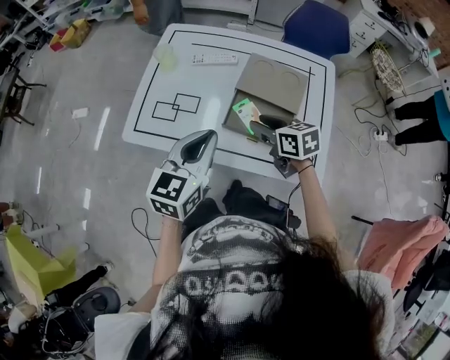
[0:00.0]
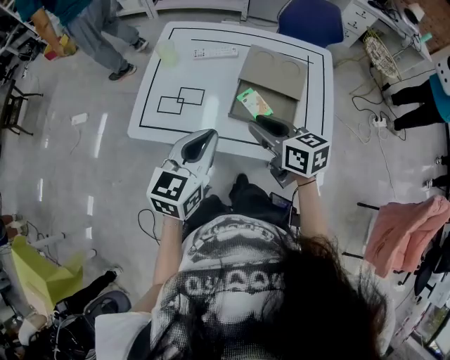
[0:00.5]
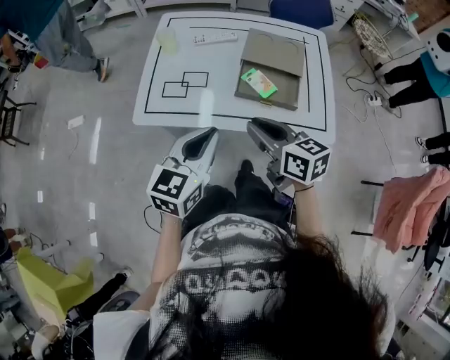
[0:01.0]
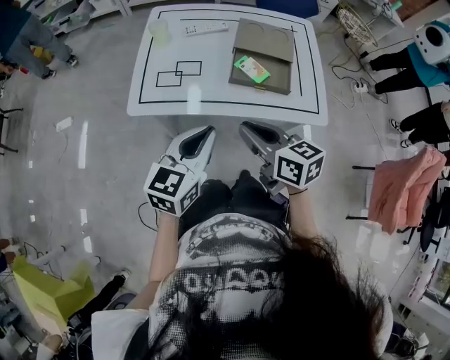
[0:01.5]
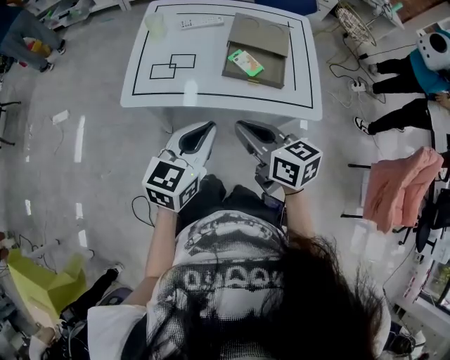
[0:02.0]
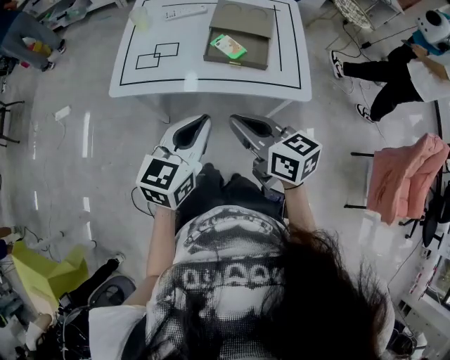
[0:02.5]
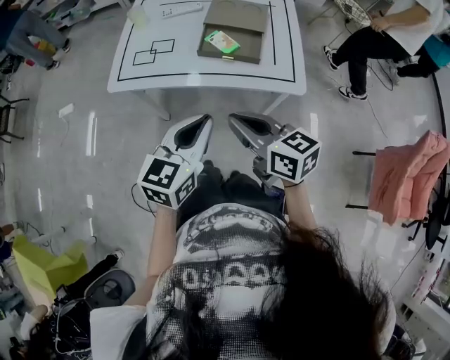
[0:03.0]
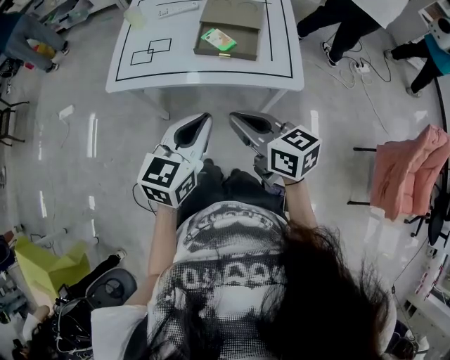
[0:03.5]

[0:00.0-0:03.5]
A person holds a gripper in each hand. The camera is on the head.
0:00.0 to 0:02.0: The grippers both shift backward and to the left by about 25 cm. The right gripper closes.
0:02.0 to 0:03.5: The two grippers go approximately 15 cm to the right and backward.

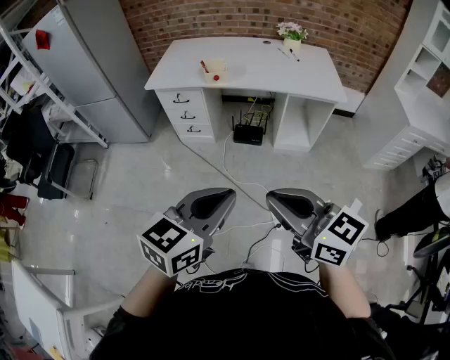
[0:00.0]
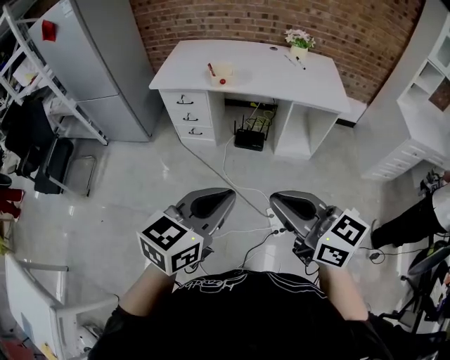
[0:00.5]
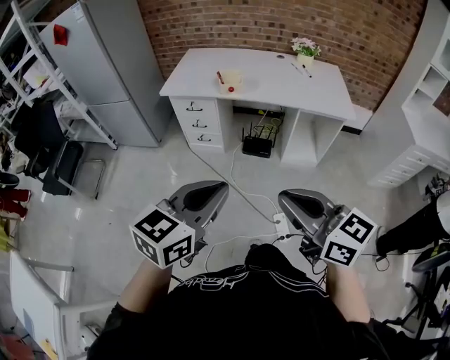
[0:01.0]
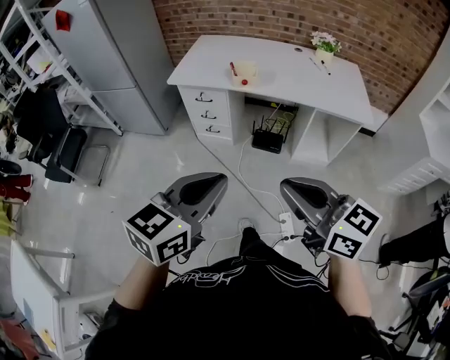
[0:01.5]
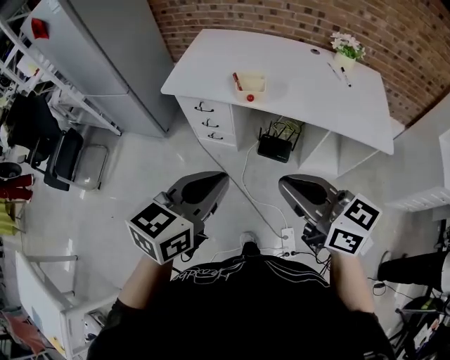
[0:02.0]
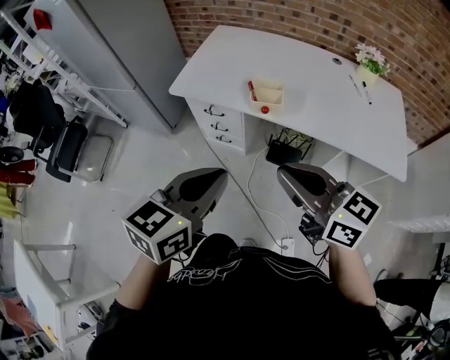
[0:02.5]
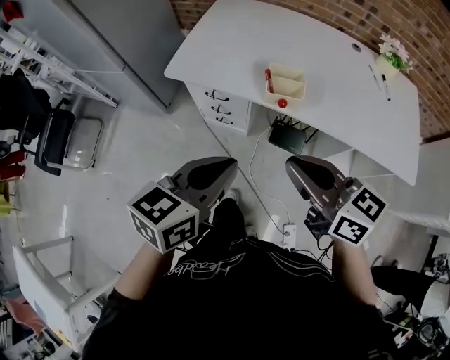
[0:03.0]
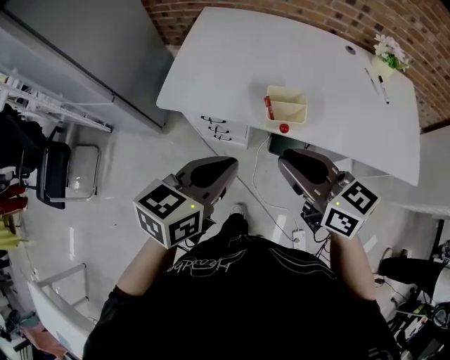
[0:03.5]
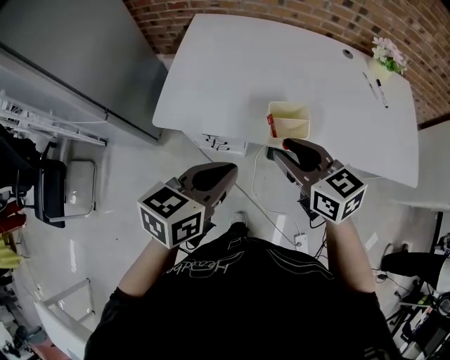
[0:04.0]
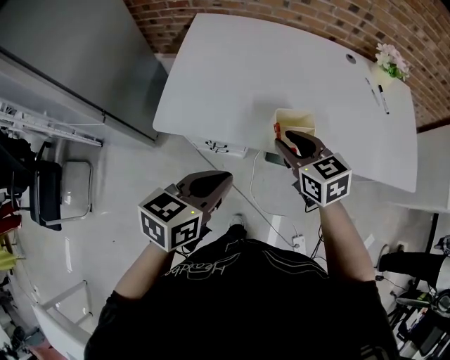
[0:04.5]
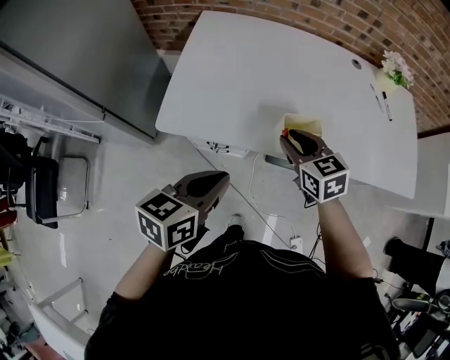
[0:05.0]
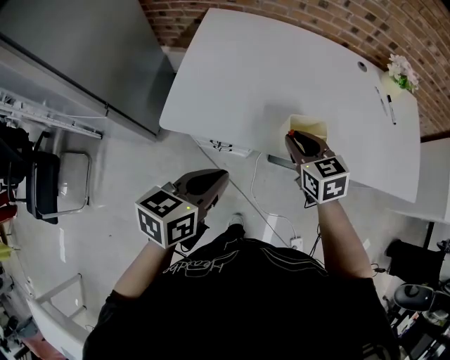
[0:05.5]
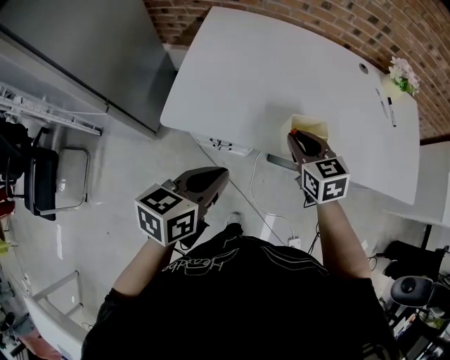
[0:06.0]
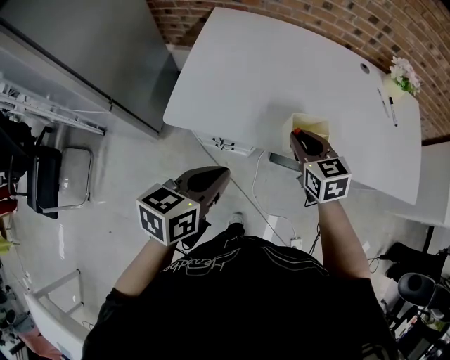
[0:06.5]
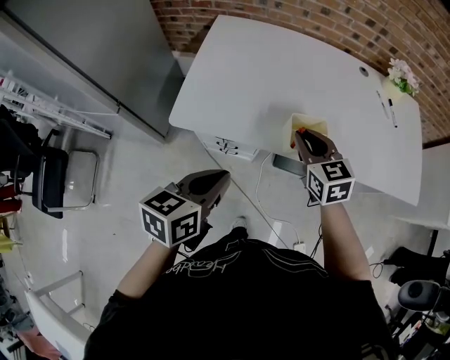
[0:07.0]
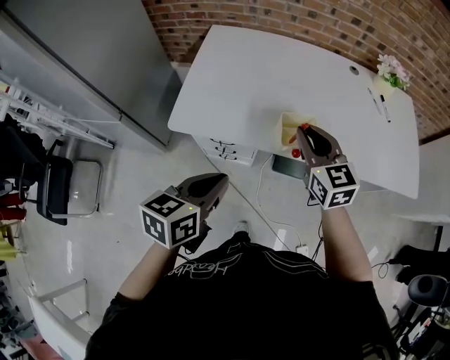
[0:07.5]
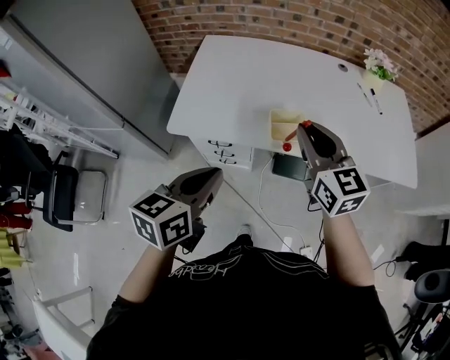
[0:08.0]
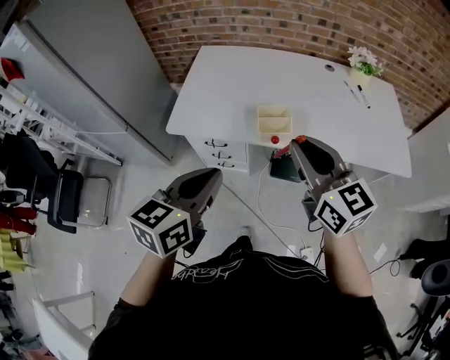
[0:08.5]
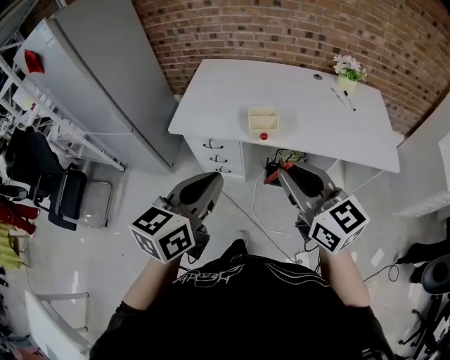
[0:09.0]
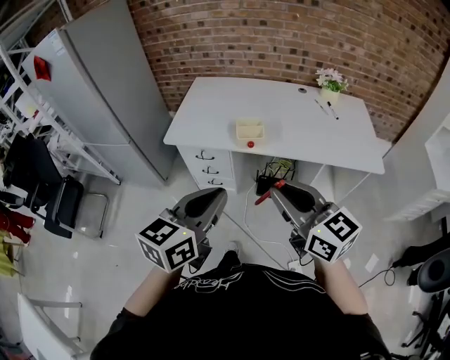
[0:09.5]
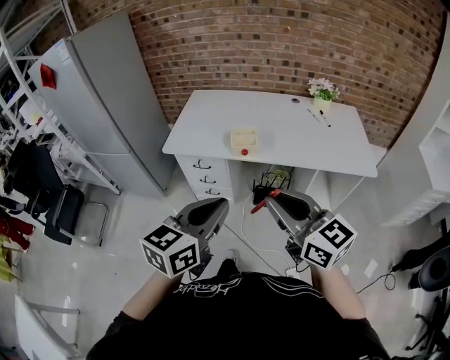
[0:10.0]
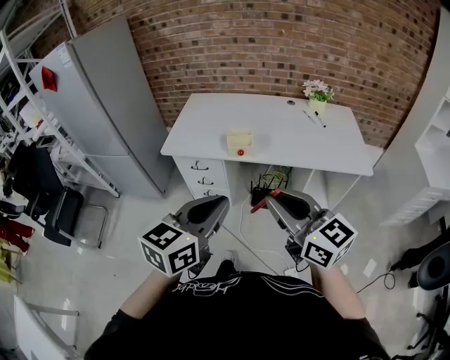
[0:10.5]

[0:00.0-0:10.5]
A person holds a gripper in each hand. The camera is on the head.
0:00.0 to 0:02.0: The two grippers go approximately 30 cm forward.
0:02.0 to 0:04.0: Both grippers move forward, approximately 35 cm. The right gripper opens its fingers.
0:04.0 to 0:06.5: The left gripper goes some 5 cm to the left. The right gripper shifts about 10 cm forward and downward.
0:06.5 to 0:08.5: The right gripper is displaced upward and backward by roughly 30 cm, and swivels approximately 30 degrees. The left gripper moves upward, backward and to the right, about 20 cm.
0:08.5 to 0:10.5: The left gripper travels backward and to the right by about 25 cm, while the right gripper is displaced backward by roughly 25 cm.

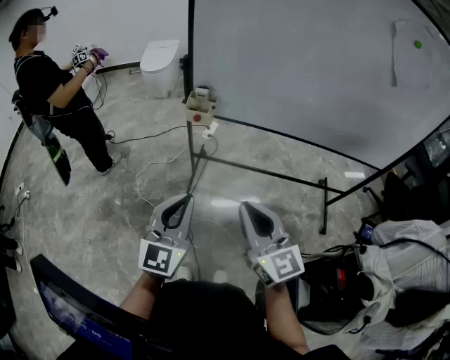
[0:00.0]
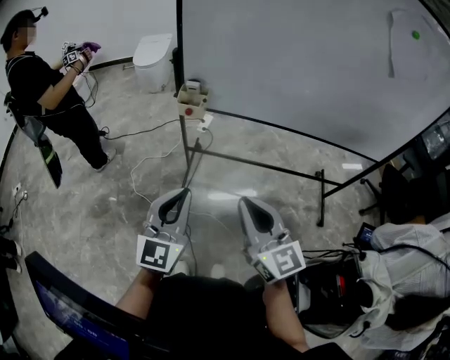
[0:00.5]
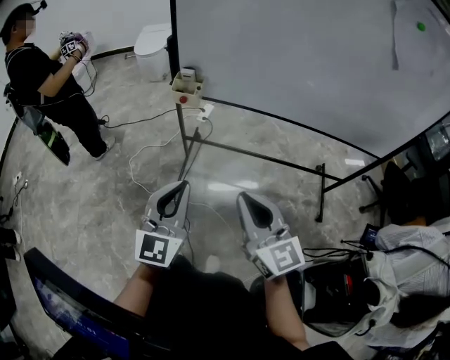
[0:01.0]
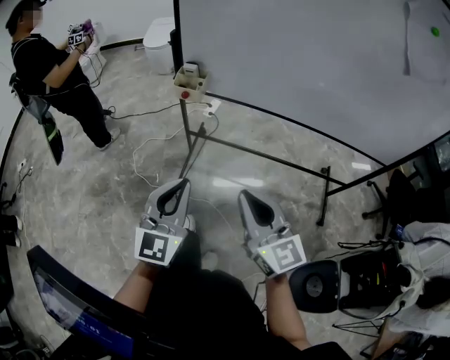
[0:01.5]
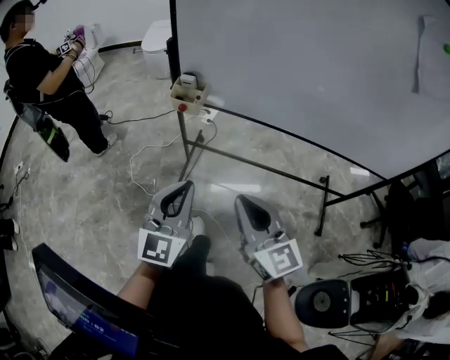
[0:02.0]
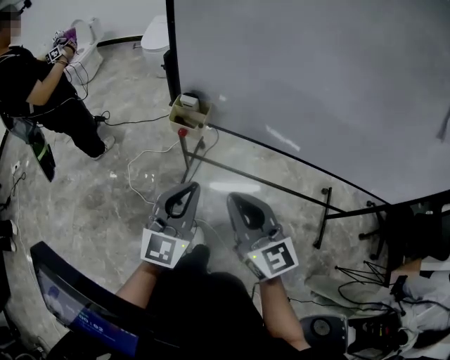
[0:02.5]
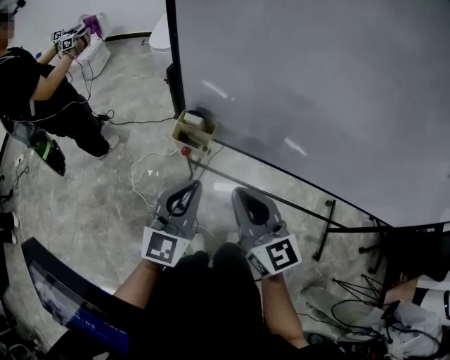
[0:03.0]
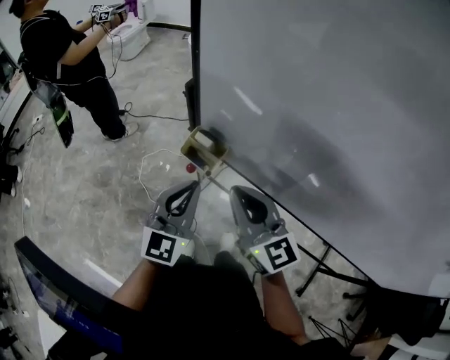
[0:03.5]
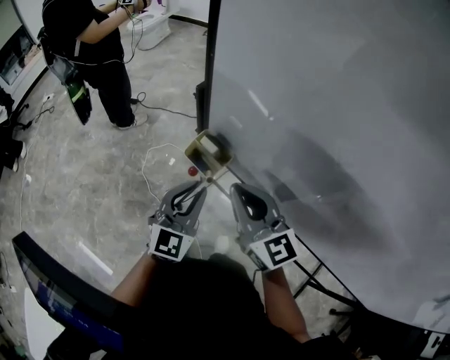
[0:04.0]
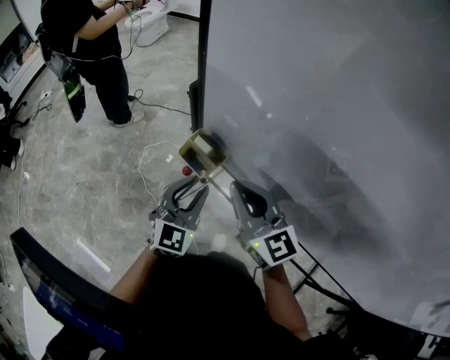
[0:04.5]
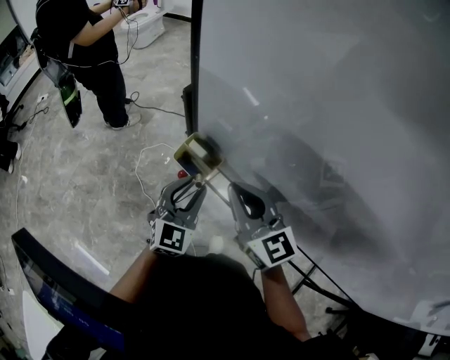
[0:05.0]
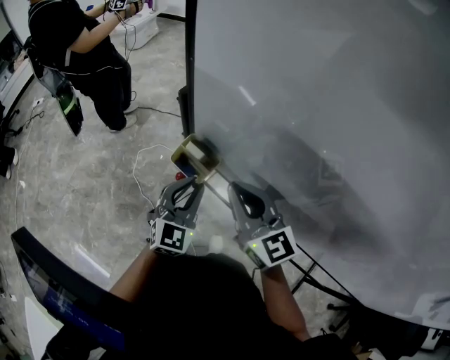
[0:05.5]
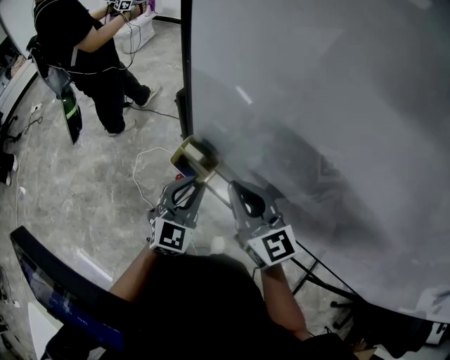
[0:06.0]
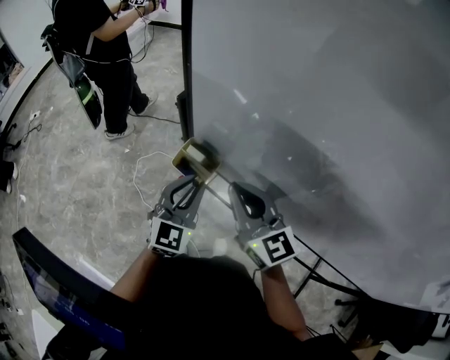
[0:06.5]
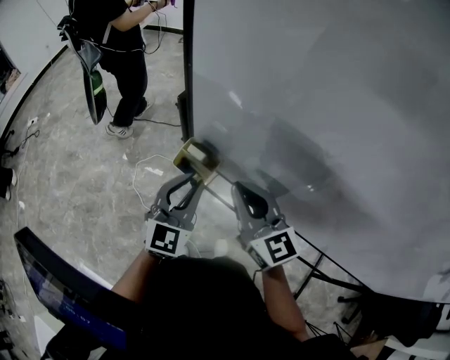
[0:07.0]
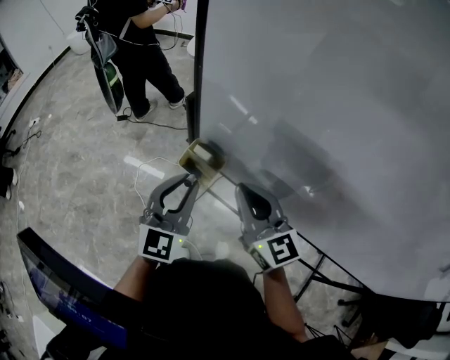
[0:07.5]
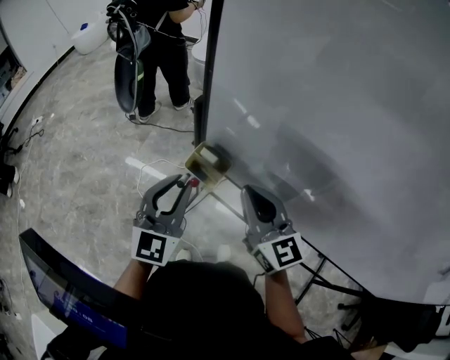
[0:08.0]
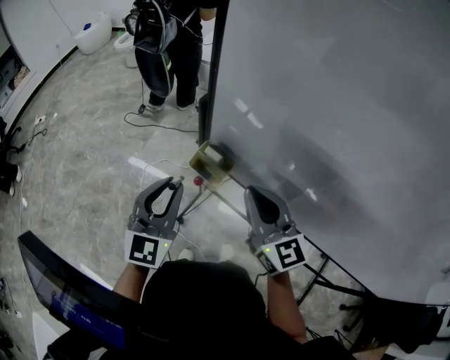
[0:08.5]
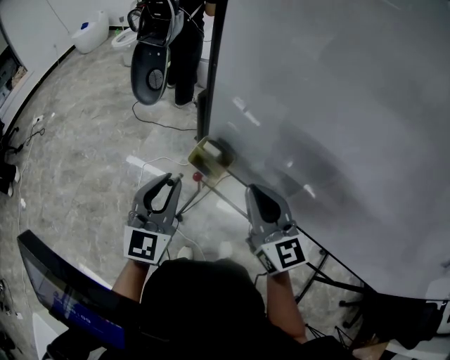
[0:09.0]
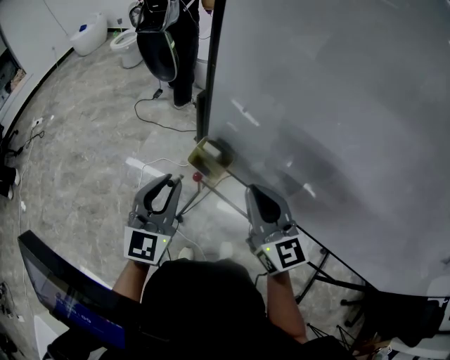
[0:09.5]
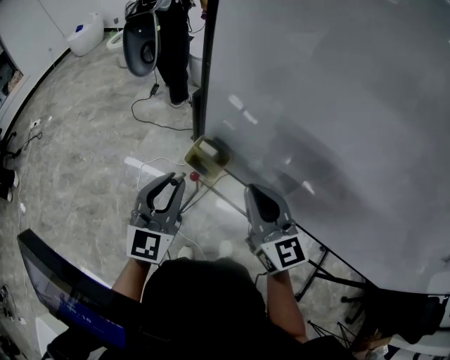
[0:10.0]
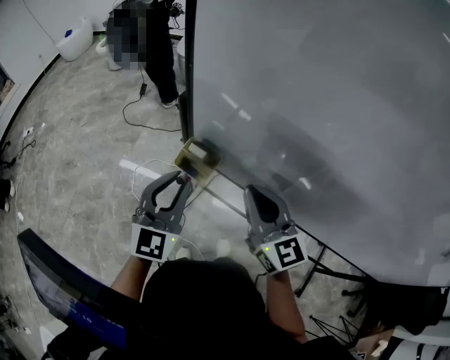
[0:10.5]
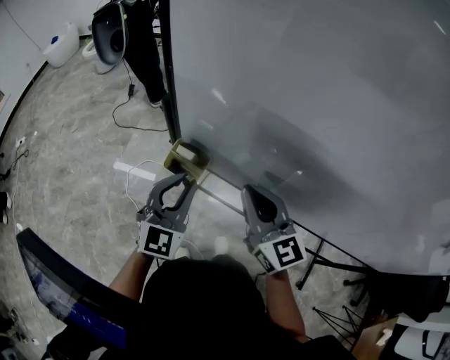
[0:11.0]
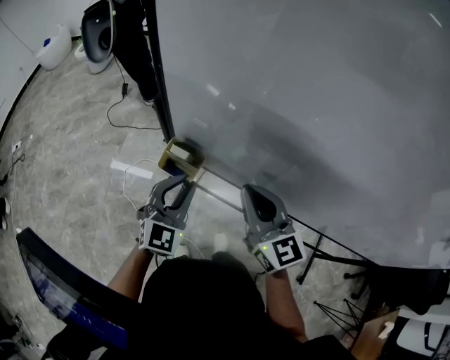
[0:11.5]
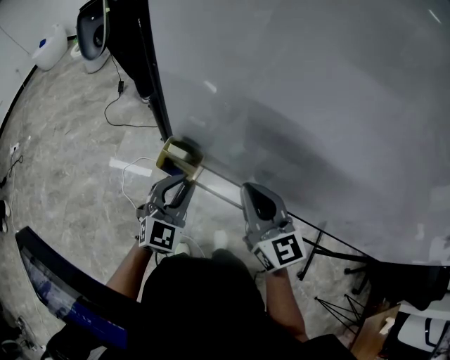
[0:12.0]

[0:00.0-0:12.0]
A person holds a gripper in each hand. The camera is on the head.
0:00.0 to 0:02.0: The two grippers go roughly 10 cm to the right and forward.
0:02.0 to 0:04.0: The left gripper changes place by about 30 cm, and changes its angle by about 20 degrees. Meanwhile the right gripper moves roughly 35 cm, and swivels some 30 degrees.
0:04.0 to 0:06.0: The left gripper changes place by roughly 5 cm.
0:06.0 to 0:08.0: The left gripper moves upward and to the left, roughly 15 cm.
0:08.0 to 0:10.0: The grippers move only a little.
0:10.0 to 0:12.0: The left gripper is displaced downward and to the right by some 15 cm, and turns by roughly 20 degrees. Meanwhile the right gripper changes place by some 5 cm.

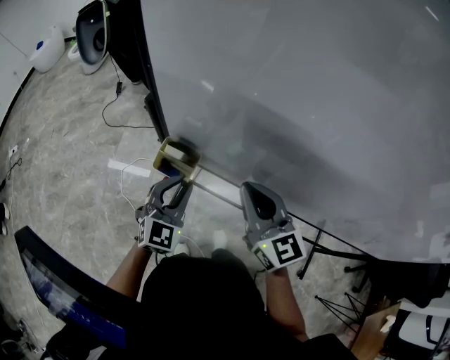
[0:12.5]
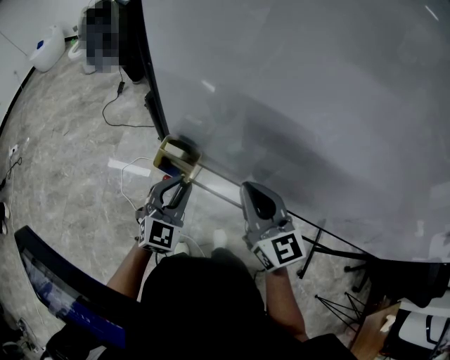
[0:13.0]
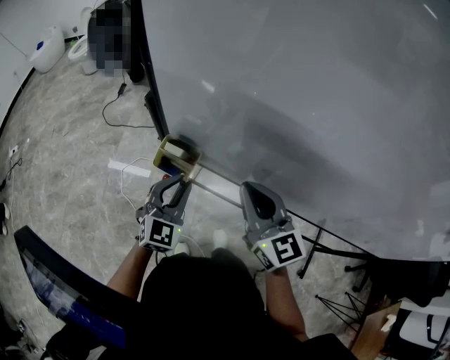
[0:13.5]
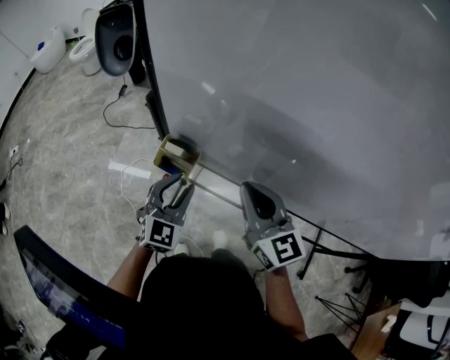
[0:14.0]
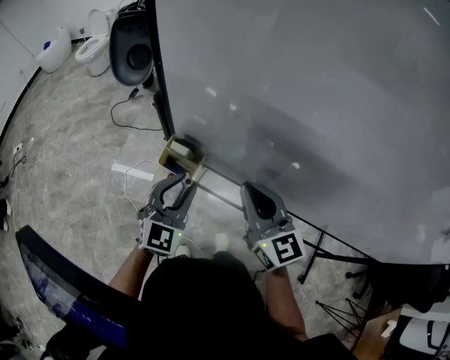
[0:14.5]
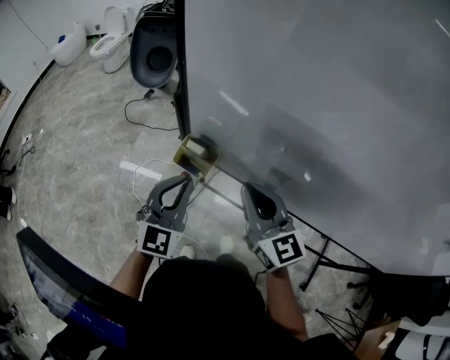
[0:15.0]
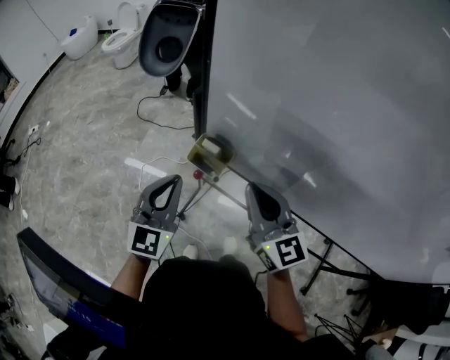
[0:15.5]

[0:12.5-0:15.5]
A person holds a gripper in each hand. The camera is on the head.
0:12.5 to 0:14.0: Neither gripper changes place.
0:14.0 to 0:15.5: The left gripper travels to the left and upward by some 15 cm, and closes; the right gripper shifts about 5 cm to the left.
